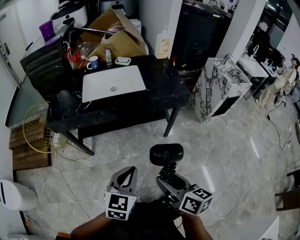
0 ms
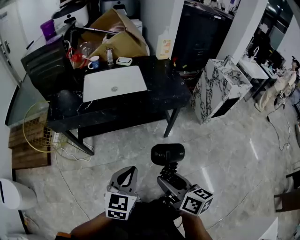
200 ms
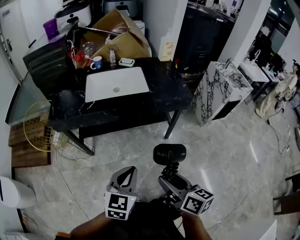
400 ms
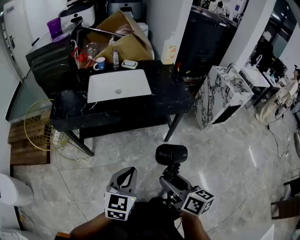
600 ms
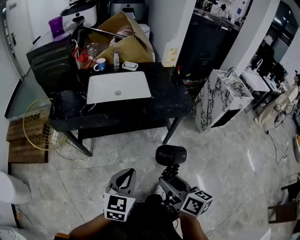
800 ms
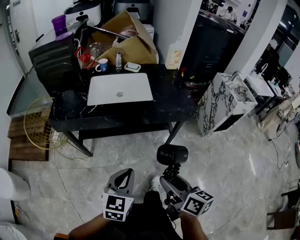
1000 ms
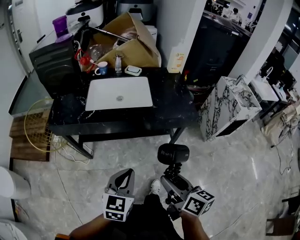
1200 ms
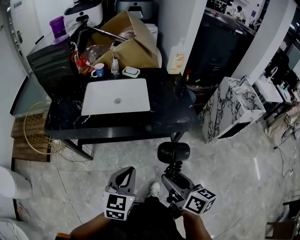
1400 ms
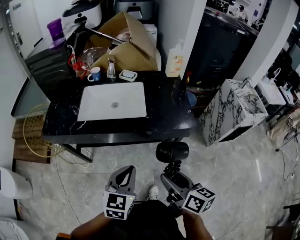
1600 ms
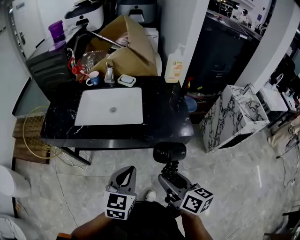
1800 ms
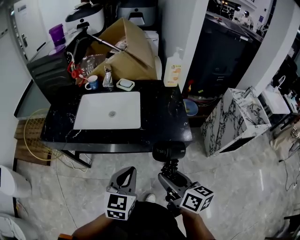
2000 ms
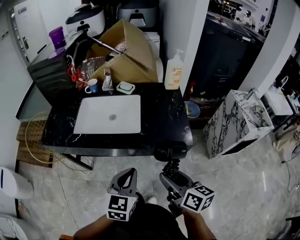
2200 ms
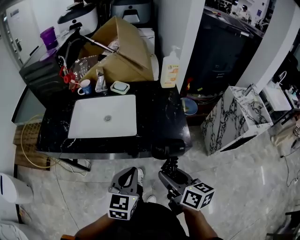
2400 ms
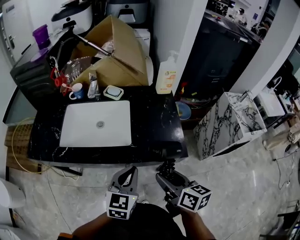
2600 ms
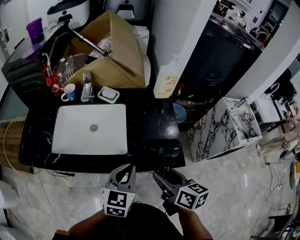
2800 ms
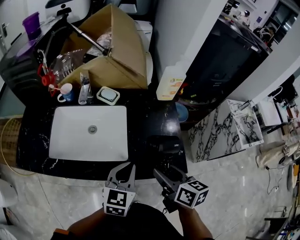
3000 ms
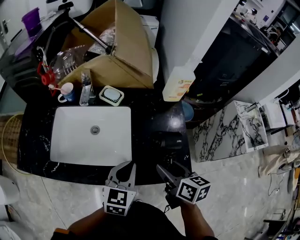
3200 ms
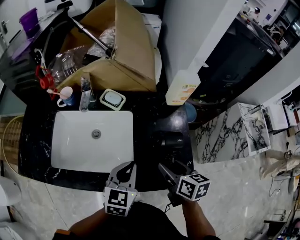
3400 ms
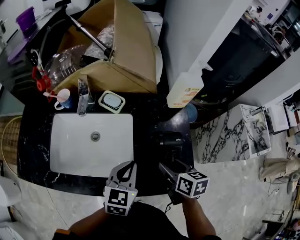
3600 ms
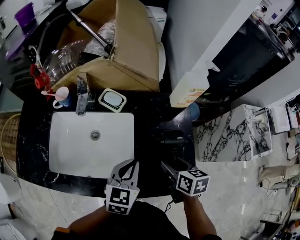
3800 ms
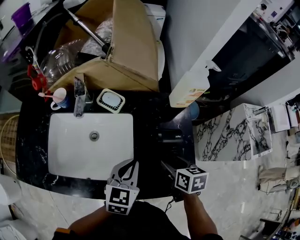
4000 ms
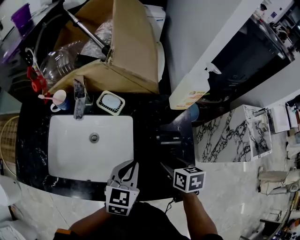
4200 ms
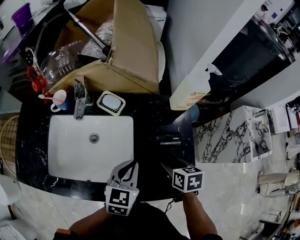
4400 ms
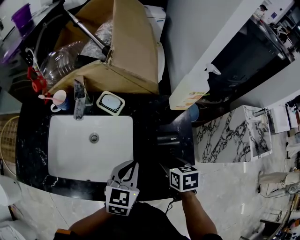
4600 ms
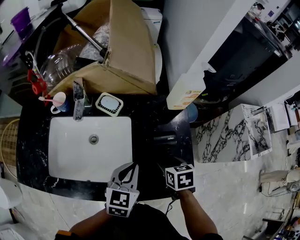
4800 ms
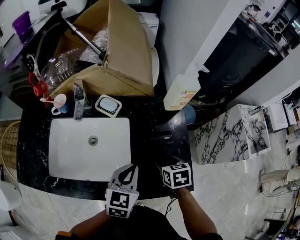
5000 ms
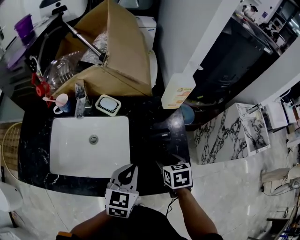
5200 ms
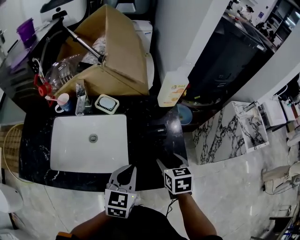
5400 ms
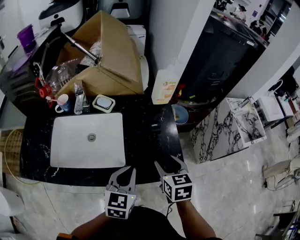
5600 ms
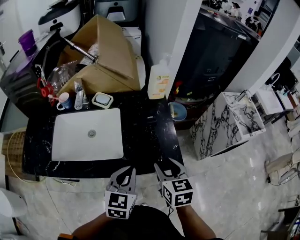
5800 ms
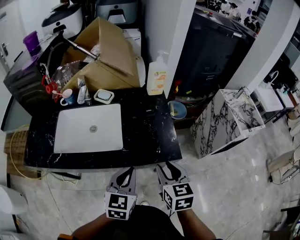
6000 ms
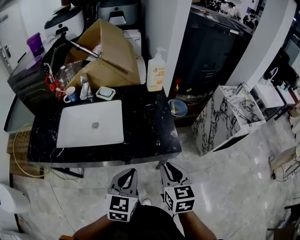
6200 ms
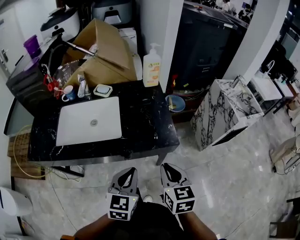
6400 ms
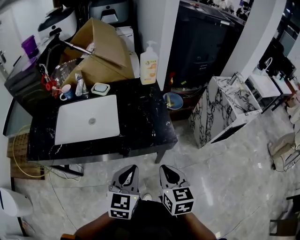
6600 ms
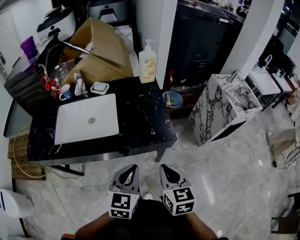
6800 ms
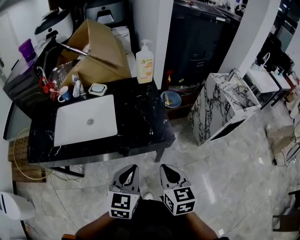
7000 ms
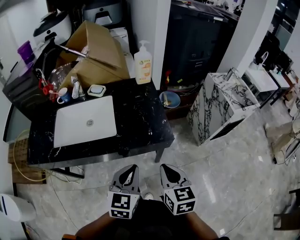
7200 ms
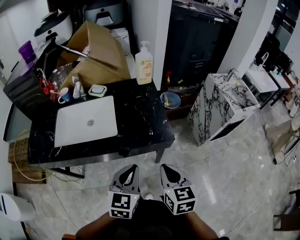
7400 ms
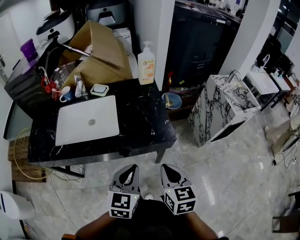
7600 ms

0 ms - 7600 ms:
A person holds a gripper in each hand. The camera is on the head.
0 ms - 1600 ms: The grippers both shift forward and to the right by about 20 cm.
1600 ms - 3000 ms: The right gripper moves forward, roughly 30 cm. Meanwhile the left gripper shifts approximately 30 cm forward and to the right.
3000 ms - 4600 ms: The left gripper shifts roughly 10 cm forward; the right gripper shifts some 20 cm forward and downward, and tips its fingers downward by approximately 30 degrees.
4600 ms - 6000 ms: The right gripper shifts about 25 cm backward and upward, and changes its angle by roughly 30 degrees. Meanwhile the left gripper goes about 20 cm backward.
6000 ms - 7600 ms: The two grippers go some 10 cm backward. The right gripper closes its fingers.

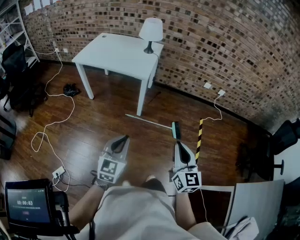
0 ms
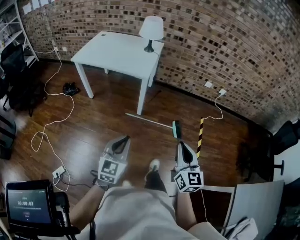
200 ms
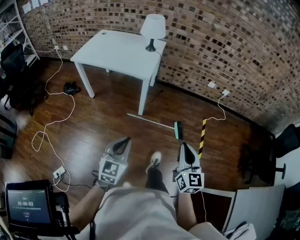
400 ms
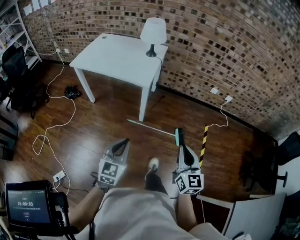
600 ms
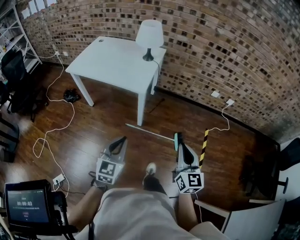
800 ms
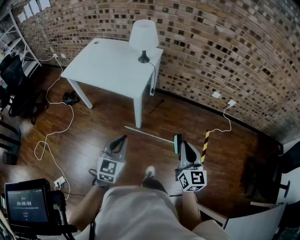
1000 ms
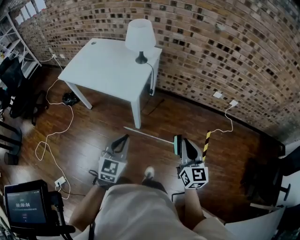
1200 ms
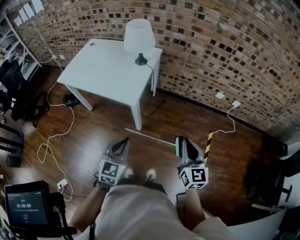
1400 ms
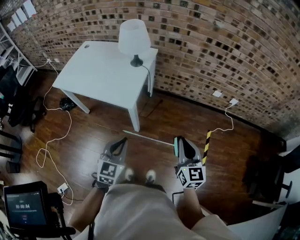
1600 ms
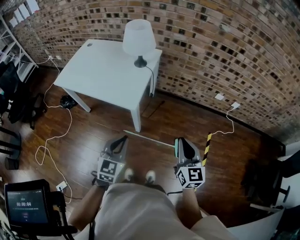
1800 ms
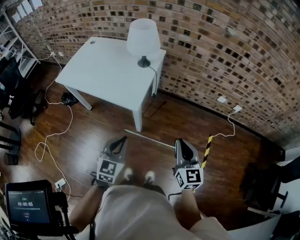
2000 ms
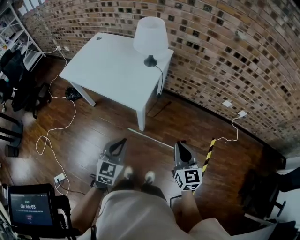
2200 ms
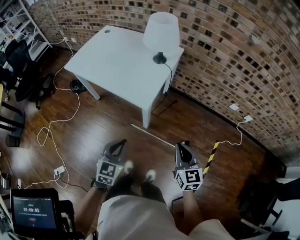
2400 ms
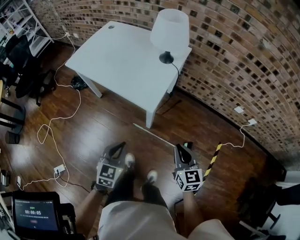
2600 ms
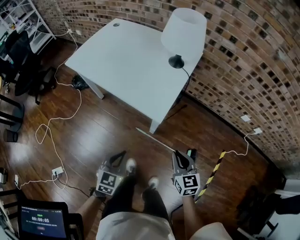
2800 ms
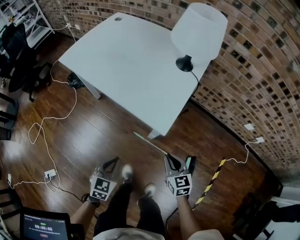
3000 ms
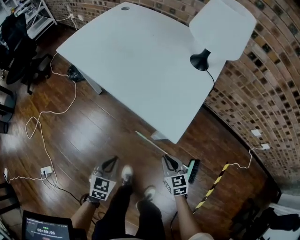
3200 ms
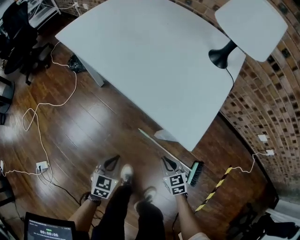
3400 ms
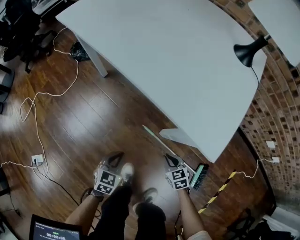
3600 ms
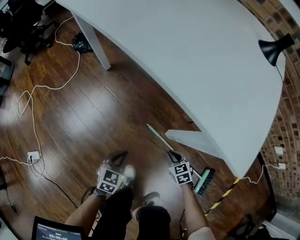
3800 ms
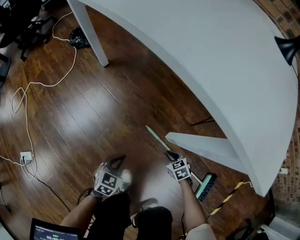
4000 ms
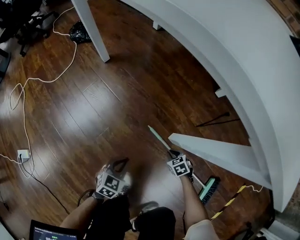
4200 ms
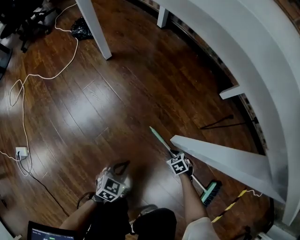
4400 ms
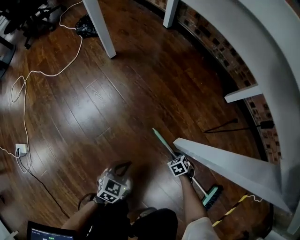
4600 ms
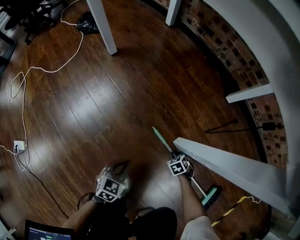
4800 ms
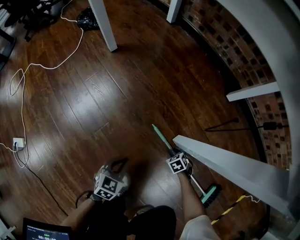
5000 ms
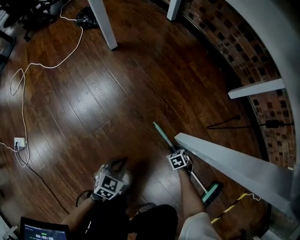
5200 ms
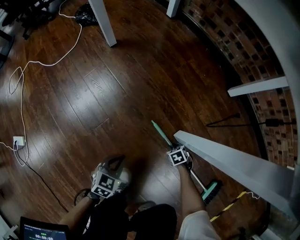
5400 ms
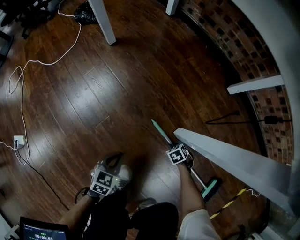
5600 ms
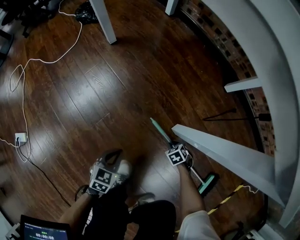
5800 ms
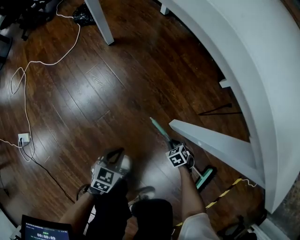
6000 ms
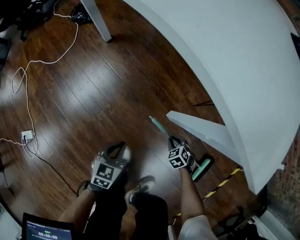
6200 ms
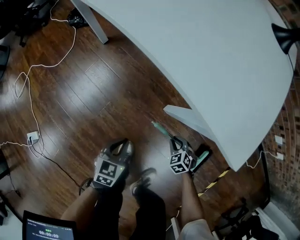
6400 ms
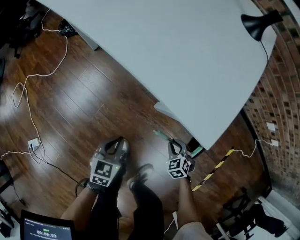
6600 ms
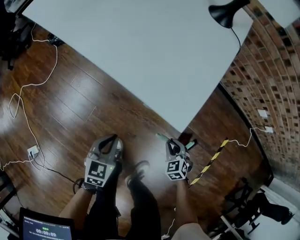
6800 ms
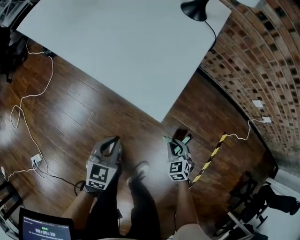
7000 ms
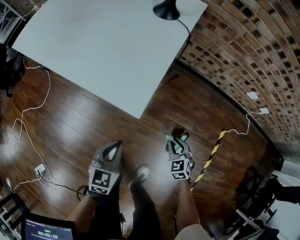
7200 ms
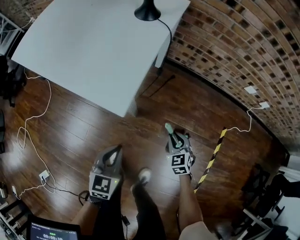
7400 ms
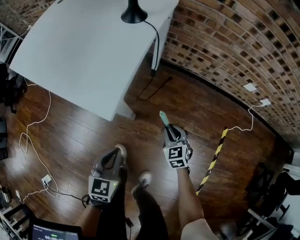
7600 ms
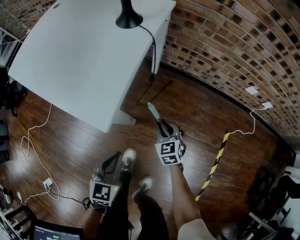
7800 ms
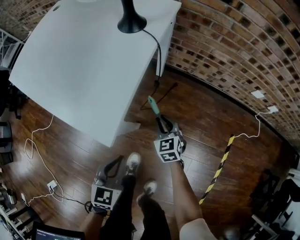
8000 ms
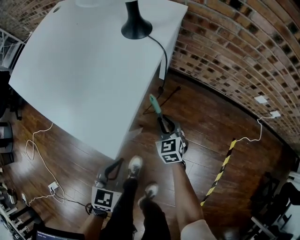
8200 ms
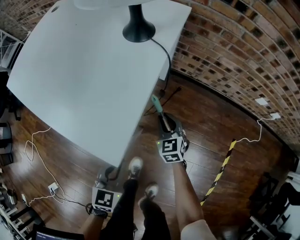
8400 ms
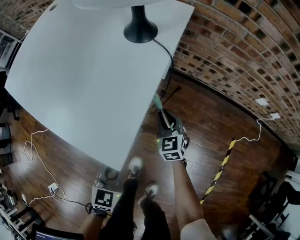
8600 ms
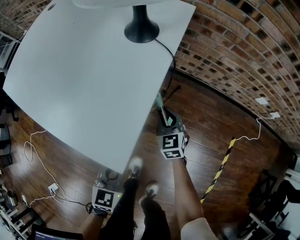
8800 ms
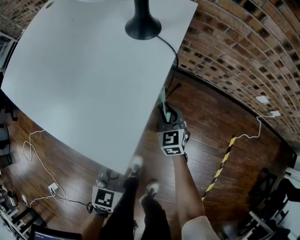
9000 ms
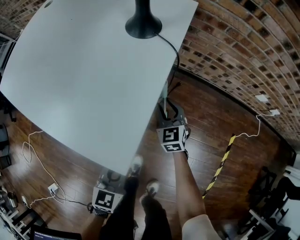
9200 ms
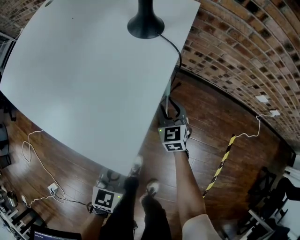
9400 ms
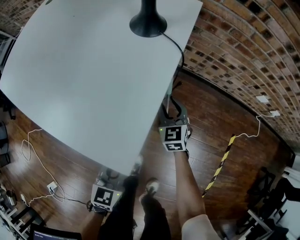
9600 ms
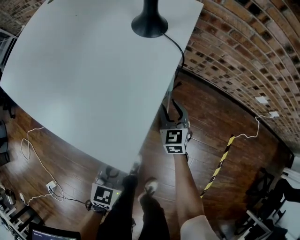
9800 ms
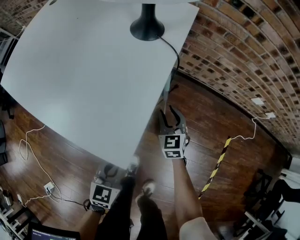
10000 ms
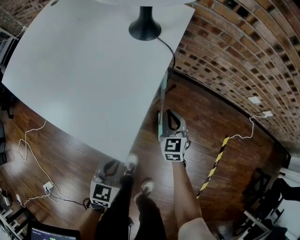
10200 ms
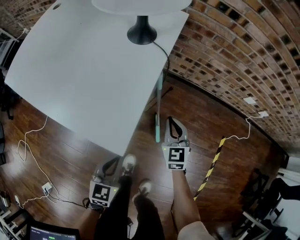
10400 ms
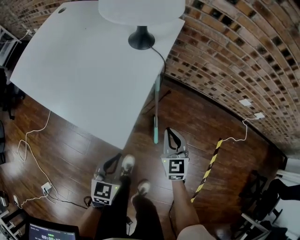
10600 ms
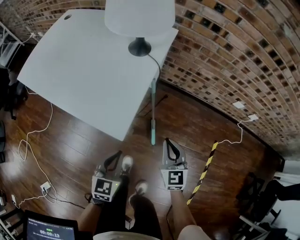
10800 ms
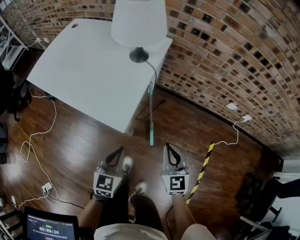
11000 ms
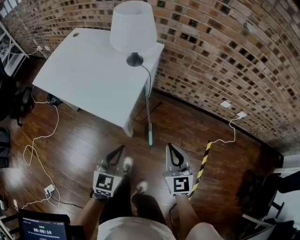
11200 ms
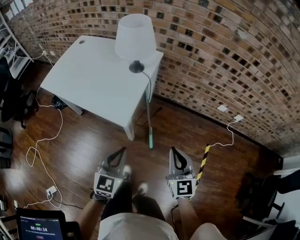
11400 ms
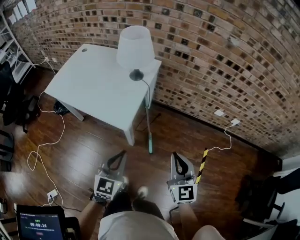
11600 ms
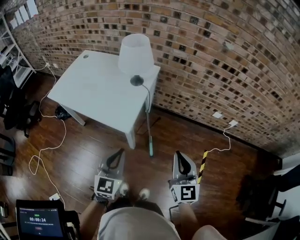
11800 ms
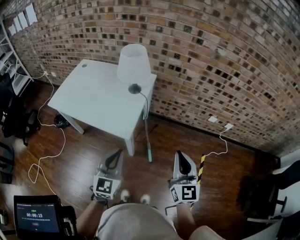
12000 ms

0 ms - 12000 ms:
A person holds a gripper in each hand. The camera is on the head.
0 ms - 1600 ms: The two grippers go roughly 35 cm forward.
1600 ms - 3000 ms: The right gripper moves downward, to the left and forward, about 40 cm, and rotates some 30 degrees; the left gripper shifts about 30 cm downward and to the left, and turns by approximately 20 degrees.
3000 ms - 4400 ms: Both grippers move downward, roughly 60 cm. The right gripper tips its fingers downward by about 40 degrees.
4400 ms - 6000 ms: The two grippers go about 5 cm upward.
6000 ms - 7600 ms: The two grippers go roughly 40 cm upward. The right gripper tips its fingers upward by roughly 40 degrees, while the left gripper rotates some 20 degrees.
7600 ms - 9000 ms: The left gripper goes some 10 cm forward, while the right gripper shifts approximately 20 cm forward and to the left.
9000 ms - 10400 ms: The right gripper shifts some 10 cm upward, backward and to the right, and closes up.
10400 ms - 12000 ms: The right gripper heads upward and backward, covering about 50 cm, and rotates about 30 degrees. The left gripper shifts some 40 cm upward, and swivels roughly 30 degrees.

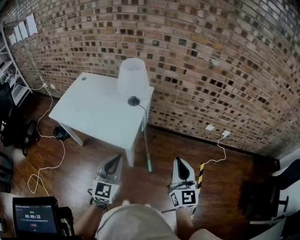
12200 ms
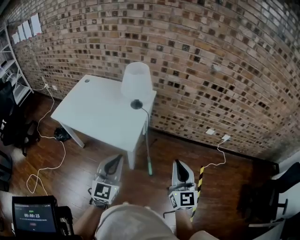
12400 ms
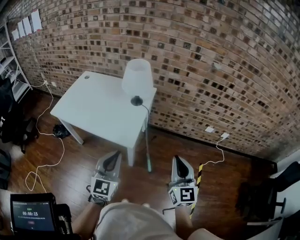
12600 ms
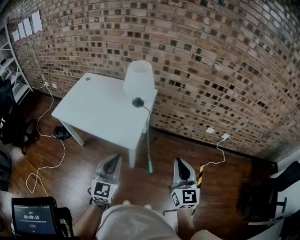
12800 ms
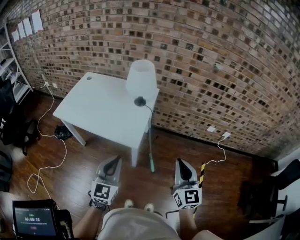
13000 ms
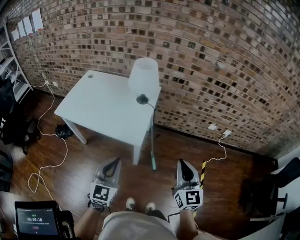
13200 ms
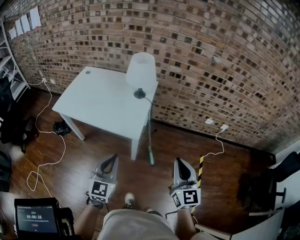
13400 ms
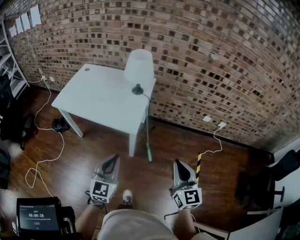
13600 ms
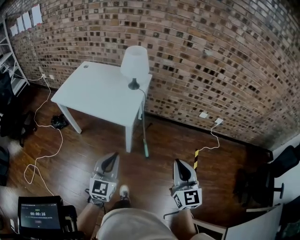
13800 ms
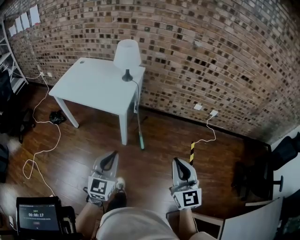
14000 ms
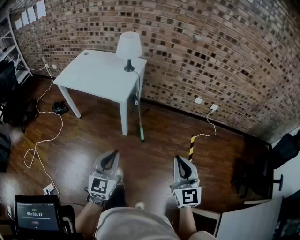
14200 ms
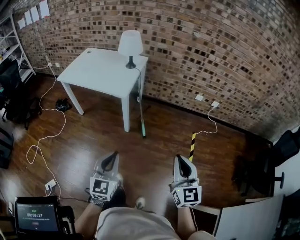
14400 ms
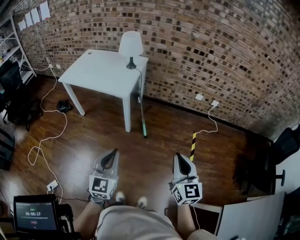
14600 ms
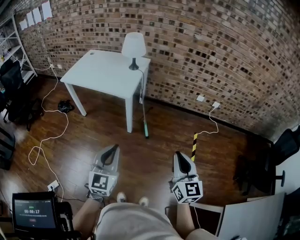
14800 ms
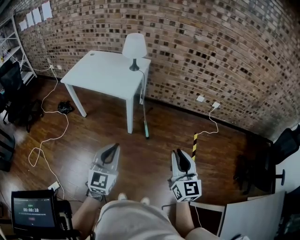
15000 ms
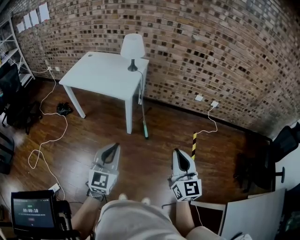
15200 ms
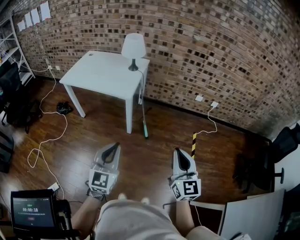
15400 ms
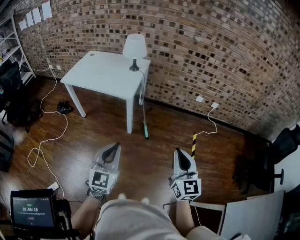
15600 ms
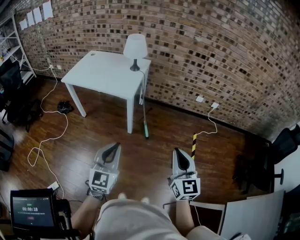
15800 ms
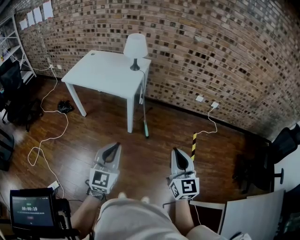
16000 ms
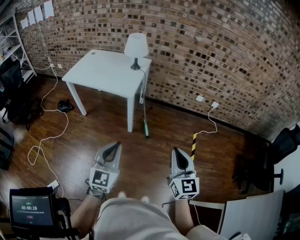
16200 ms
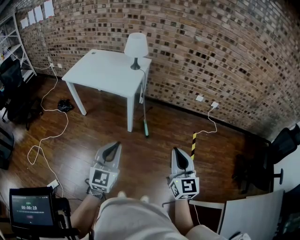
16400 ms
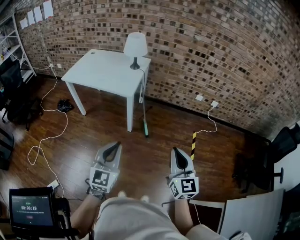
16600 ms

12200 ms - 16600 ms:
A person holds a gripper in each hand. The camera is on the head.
12200 ms - 13600 ms: The left gripper travels backward and to the left by some 10 cm. The right gripper heads backward, covering about 10 cm.
13600 ms - 15200 ms: Both grippers move backward, about 25 cm.
15200 ms - 16600 ms: The grippers make only small movements.
